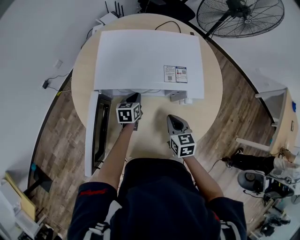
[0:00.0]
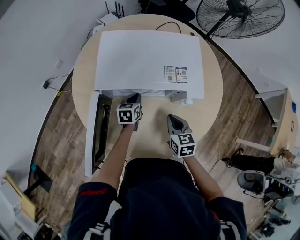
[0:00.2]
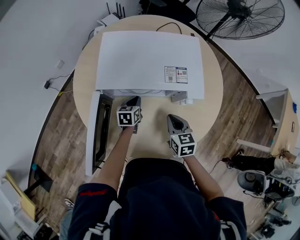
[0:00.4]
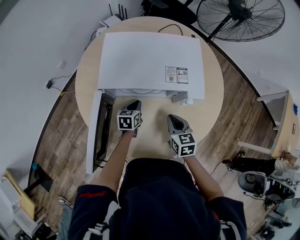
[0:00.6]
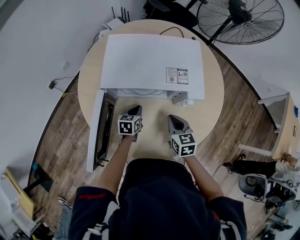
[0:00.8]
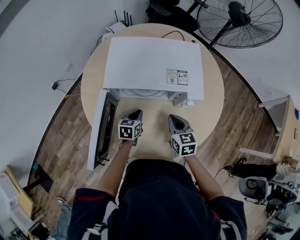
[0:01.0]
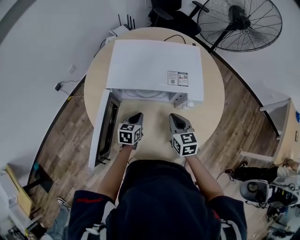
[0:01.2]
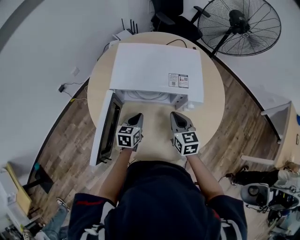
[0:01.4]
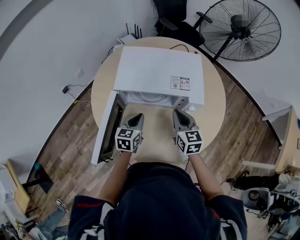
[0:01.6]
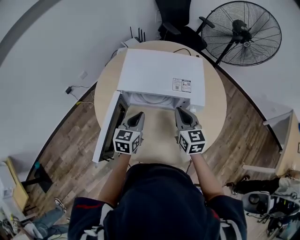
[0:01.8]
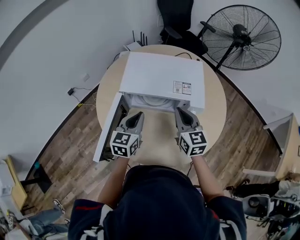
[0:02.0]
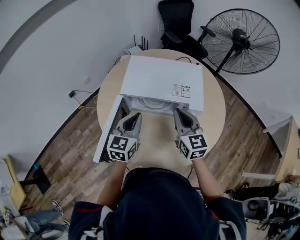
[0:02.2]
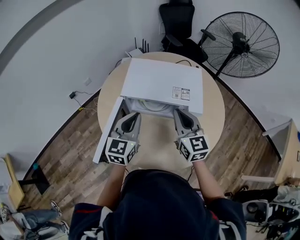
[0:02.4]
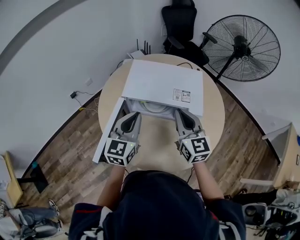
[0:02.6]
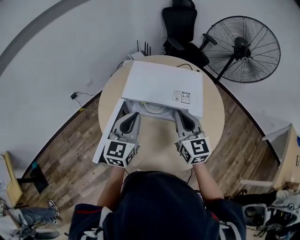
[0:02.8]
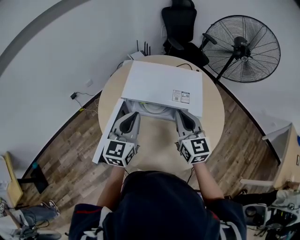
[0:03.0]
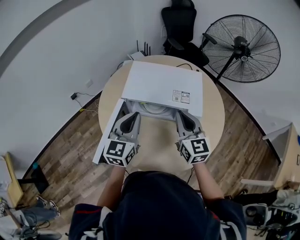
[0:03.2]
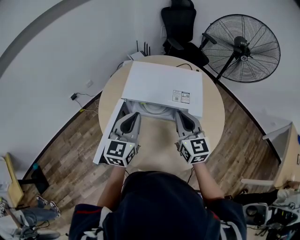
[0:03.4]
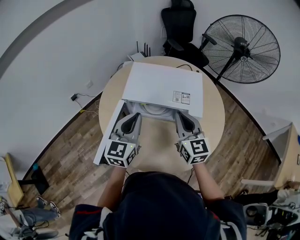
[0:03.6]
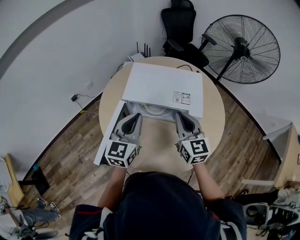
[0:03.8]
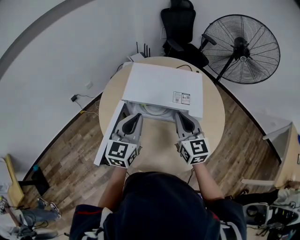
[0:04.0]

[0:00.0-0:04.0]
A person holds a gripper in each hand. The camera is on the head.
0:00.0 to 0:01.4: The right gripper shifts approximately 10 cm upward.
0:01.4 to 0:02.6: The right gripper heads upward, covering about 15 cm, and swivels about 20 degrees.

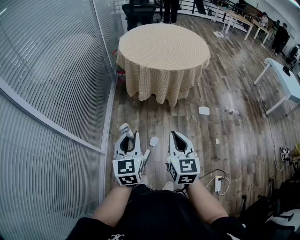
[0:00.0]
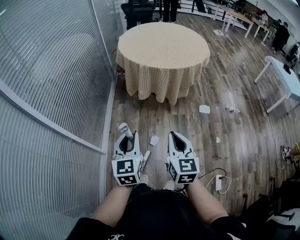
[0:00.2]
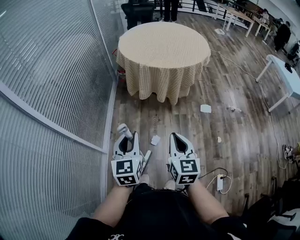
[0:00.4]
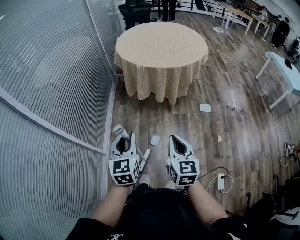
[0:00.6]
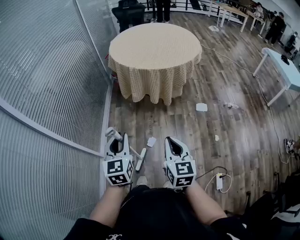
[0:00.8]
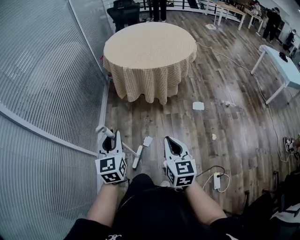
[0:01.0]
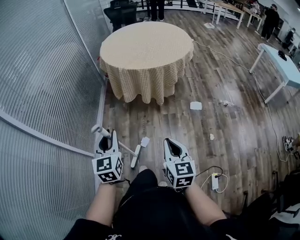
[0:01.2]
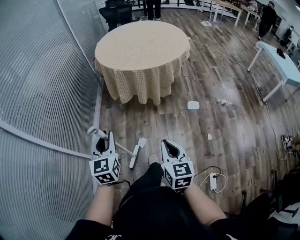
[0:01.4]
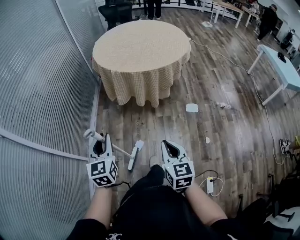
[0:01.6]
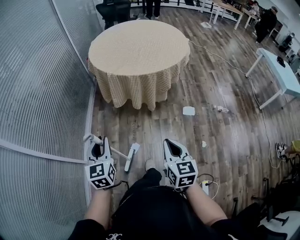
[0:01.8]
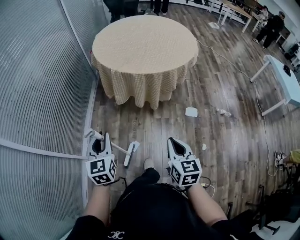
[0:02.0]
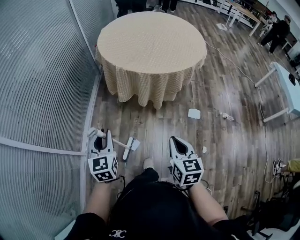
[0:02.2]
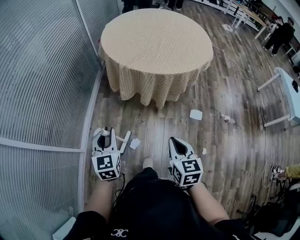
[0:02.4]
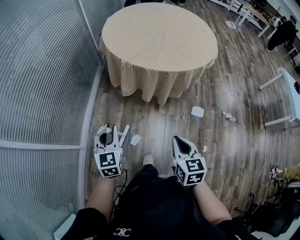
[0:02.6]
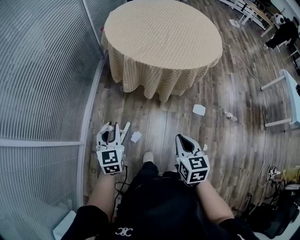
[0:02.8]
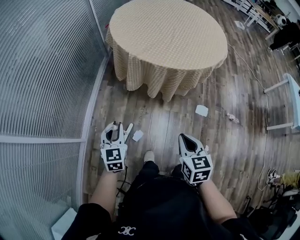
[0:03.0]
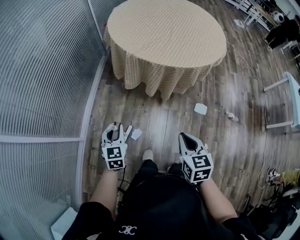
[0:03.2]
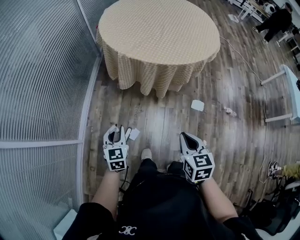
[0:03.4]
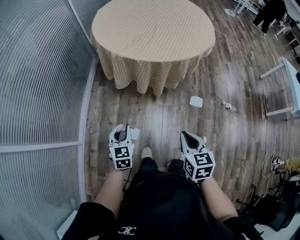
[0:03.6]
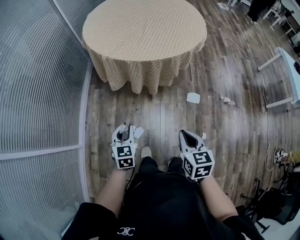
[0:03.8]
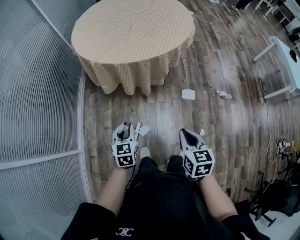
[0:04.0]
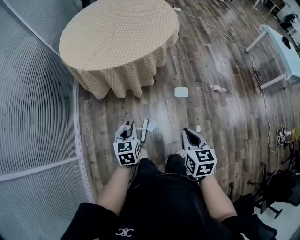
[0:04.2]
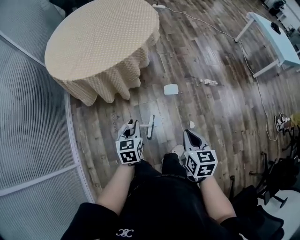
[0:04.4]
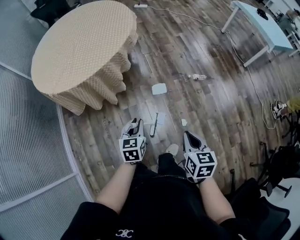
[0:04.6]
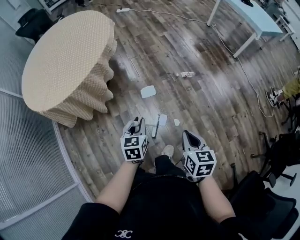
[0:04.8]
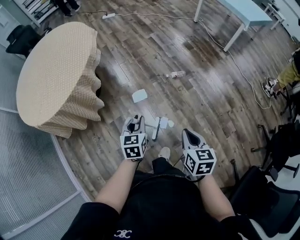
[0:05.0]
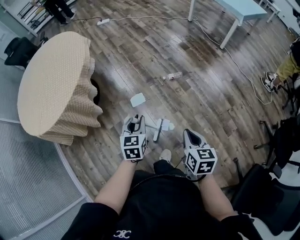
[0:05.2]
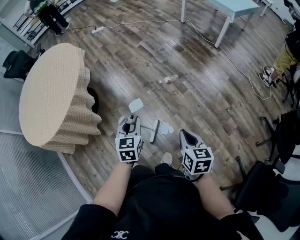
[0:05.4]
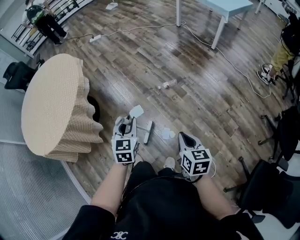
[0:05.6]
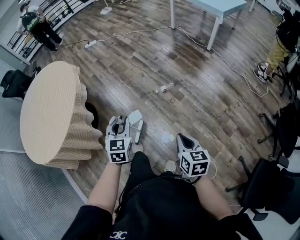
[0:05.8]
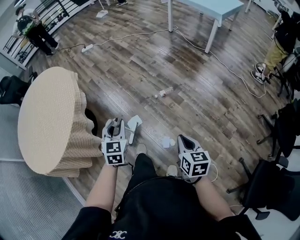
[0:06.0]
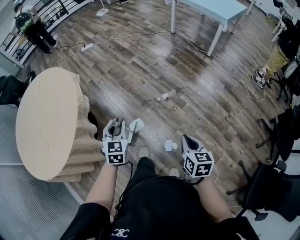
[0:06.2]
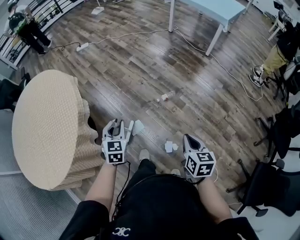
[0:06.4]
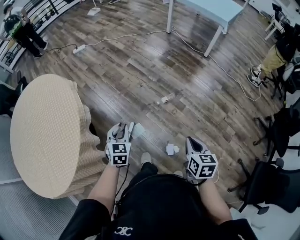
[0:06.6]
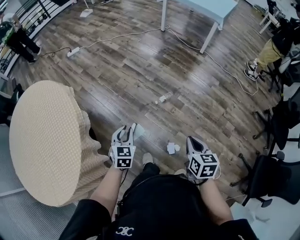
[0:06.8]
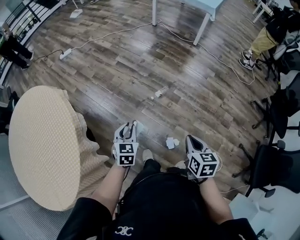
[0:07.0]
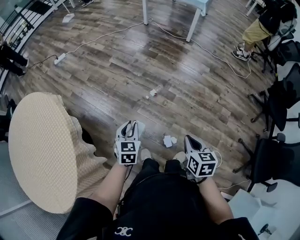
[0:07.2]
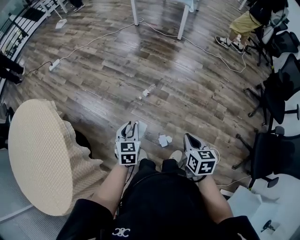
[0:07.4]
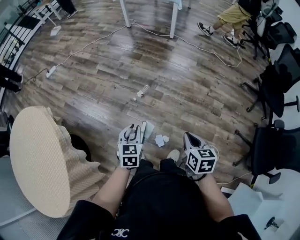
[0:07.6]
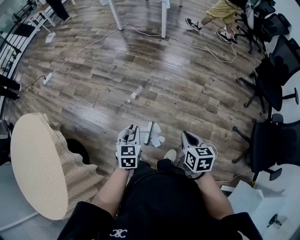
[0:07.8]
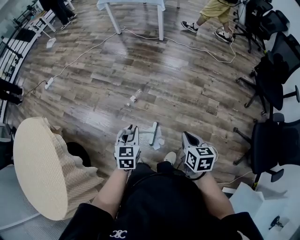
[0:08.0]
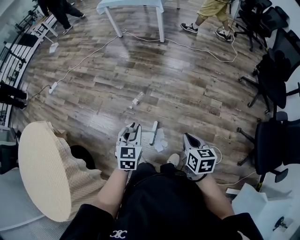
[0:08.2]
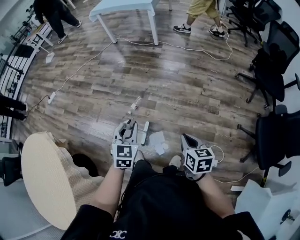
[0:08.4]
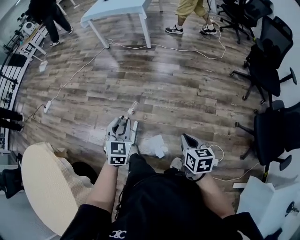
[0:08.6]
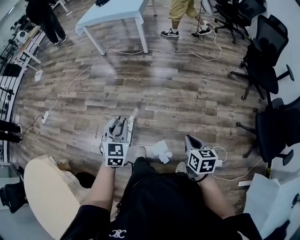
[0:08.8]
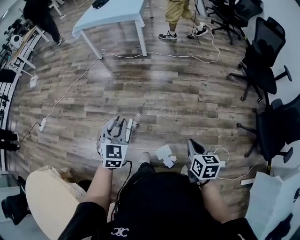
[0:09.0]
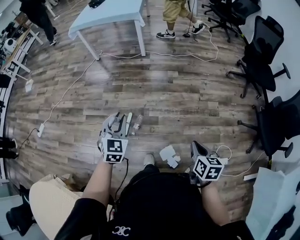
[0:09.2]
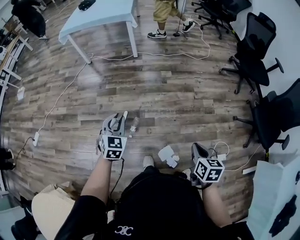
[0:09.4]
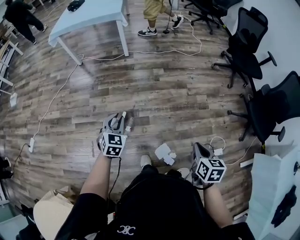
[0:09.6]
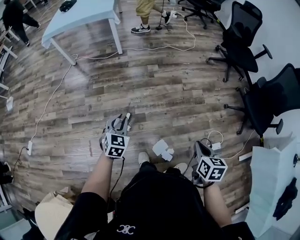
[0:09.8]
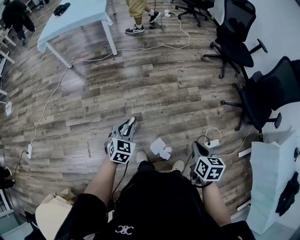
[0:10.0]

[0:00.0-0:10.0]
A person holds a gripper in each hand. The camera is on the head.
0:00.0 to 0:01.4: The right gripper shifts approximately 15 cm to the right. Meanwhile the left gripper moves to the right, roughly 10 cm.
0:01.4 to 0:02.8: The left gripper goes roughly 25 cm forward and downward; the right gripper heads forward, covering roughly 20 cm.
0:02.8 to 0:04.2: The two grippers go roughly 25 cm to the right. The left gripper changes its angle by roughly 20 degrees.
0:04.2 to 0:05.8: The two grippers travel together, some 50 cm. The left gripper rotates some 50 degrees, while the right gripper rotates about 40 degrees.
0:05.8 to 0:07.2: The left gripper travels forward and downward by about 20 cm, and changes its angle by some 20 degrees. The right gripper moves forward and to the left, roughly 15 cm, and changes its angle by roughly 20 degrees.
0:07.2 to 0:08.6: The grippers both shift to the right by some 25 cm. The left gripper changes its angle by about 30 degrees.
0:08.6 to 0:10.0: The right gripper rotates approximately 30 degrees; the left gripper turns by approximately 30 degrees.

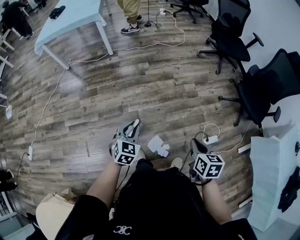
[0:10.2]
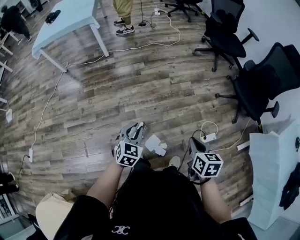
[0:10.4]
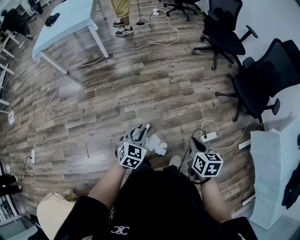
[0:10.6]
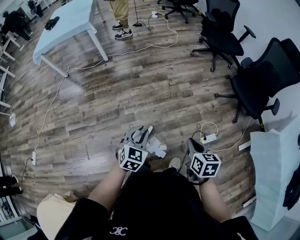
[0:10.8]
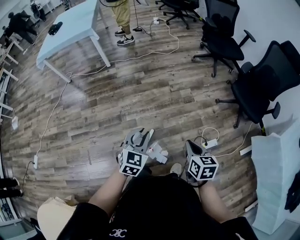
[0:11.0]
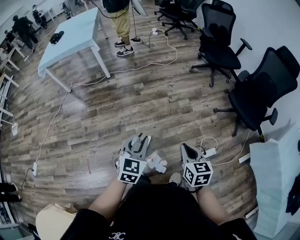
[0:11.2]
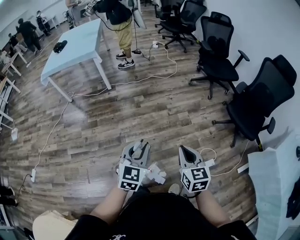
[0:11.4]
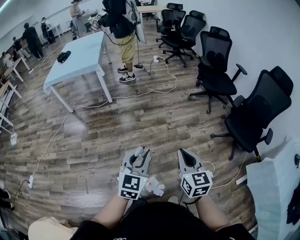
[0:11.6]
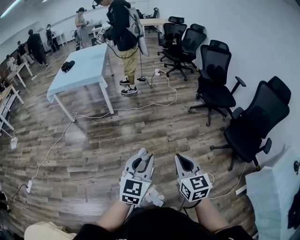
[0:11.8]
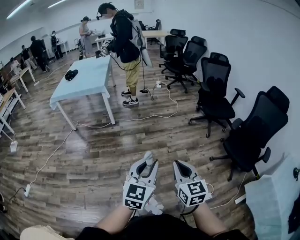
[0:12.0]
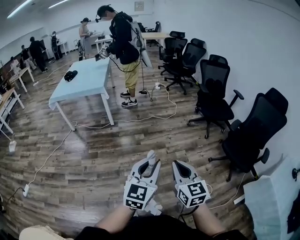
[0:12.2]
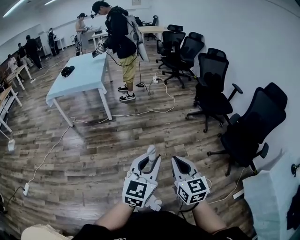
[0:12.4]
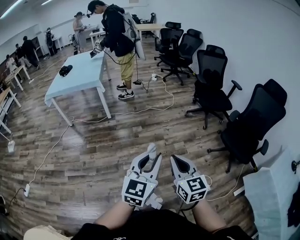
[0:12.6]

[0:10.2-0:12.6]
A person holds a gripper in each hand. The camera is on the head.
0:10.2 to 0:11.4: The right gripper travels upward by approximately 10 cm, and rotates some 30 degrees; the left gripper shifts some 20 cm upward and to the right.
0:11.4 to 0:12.6: Both grippers move upward, roughly 15 cm.

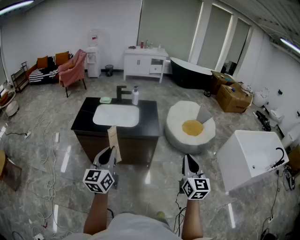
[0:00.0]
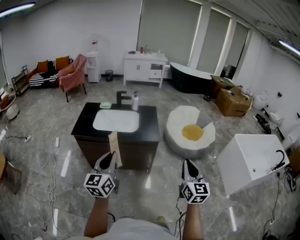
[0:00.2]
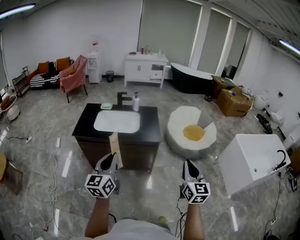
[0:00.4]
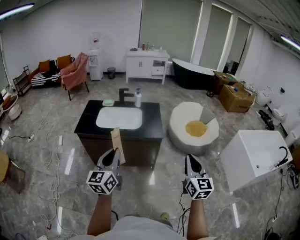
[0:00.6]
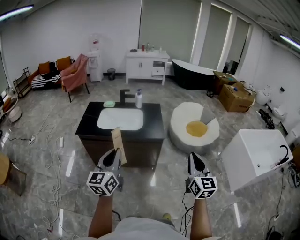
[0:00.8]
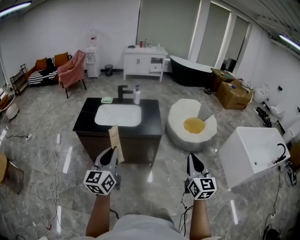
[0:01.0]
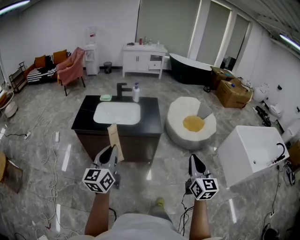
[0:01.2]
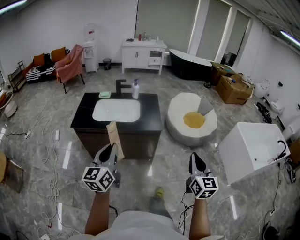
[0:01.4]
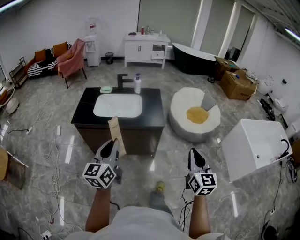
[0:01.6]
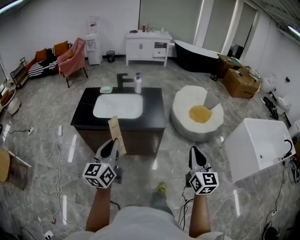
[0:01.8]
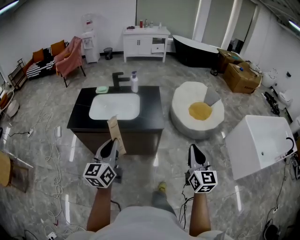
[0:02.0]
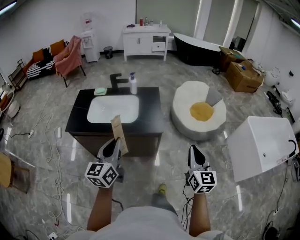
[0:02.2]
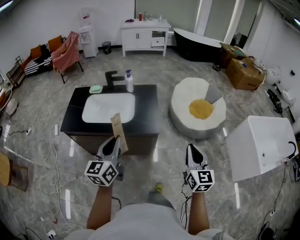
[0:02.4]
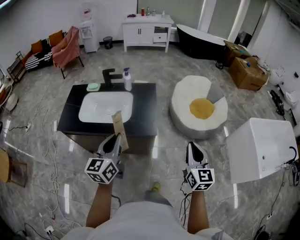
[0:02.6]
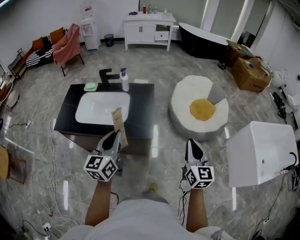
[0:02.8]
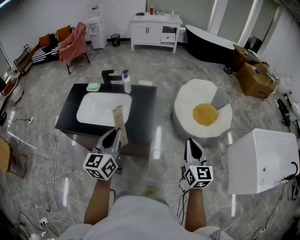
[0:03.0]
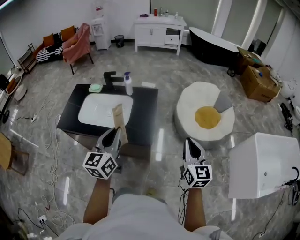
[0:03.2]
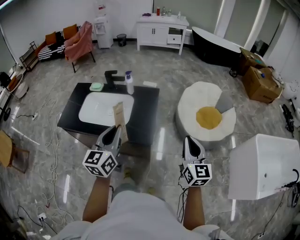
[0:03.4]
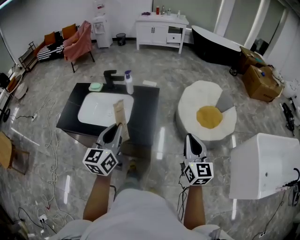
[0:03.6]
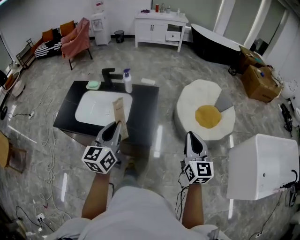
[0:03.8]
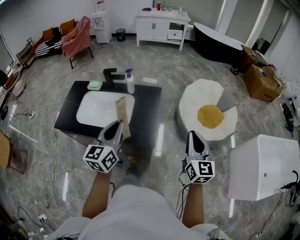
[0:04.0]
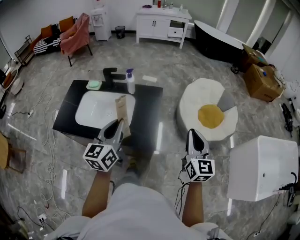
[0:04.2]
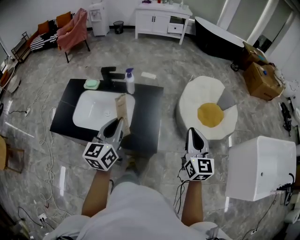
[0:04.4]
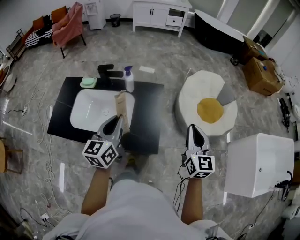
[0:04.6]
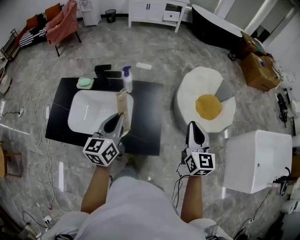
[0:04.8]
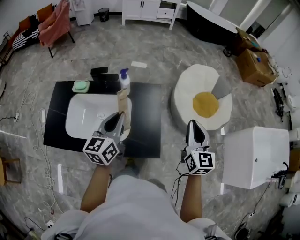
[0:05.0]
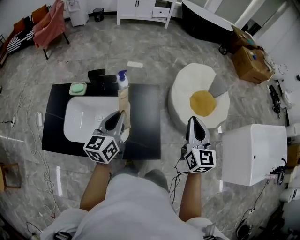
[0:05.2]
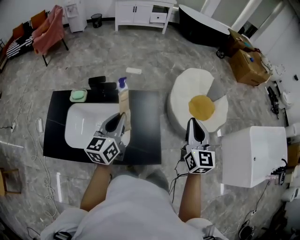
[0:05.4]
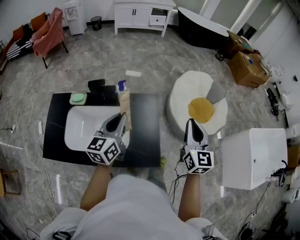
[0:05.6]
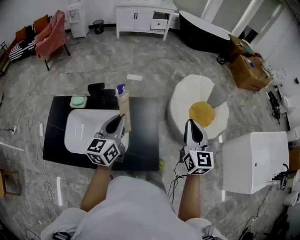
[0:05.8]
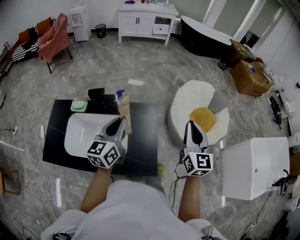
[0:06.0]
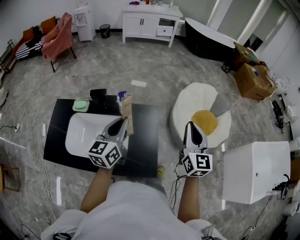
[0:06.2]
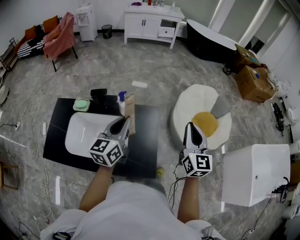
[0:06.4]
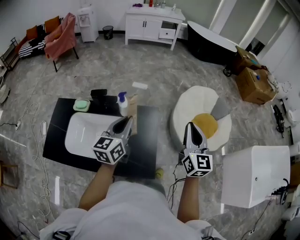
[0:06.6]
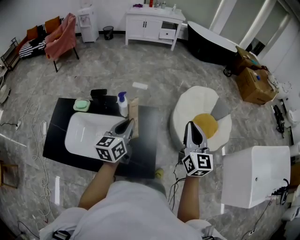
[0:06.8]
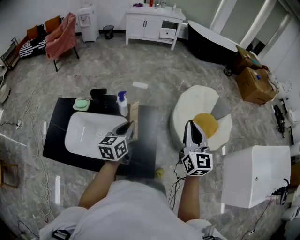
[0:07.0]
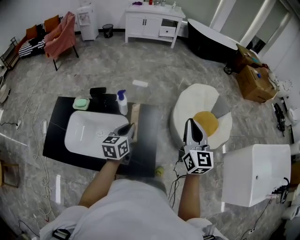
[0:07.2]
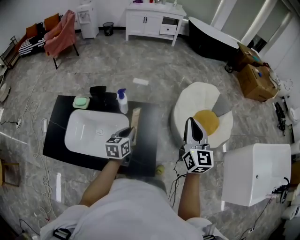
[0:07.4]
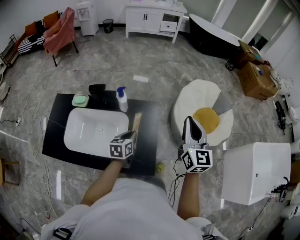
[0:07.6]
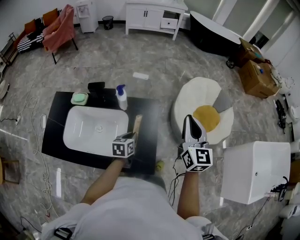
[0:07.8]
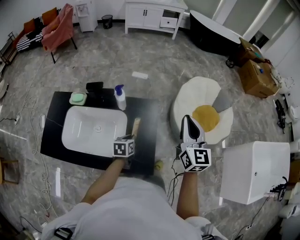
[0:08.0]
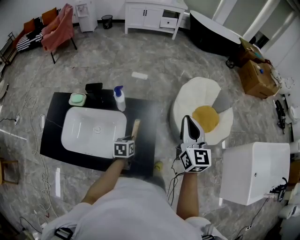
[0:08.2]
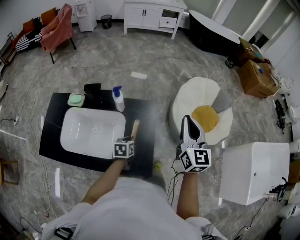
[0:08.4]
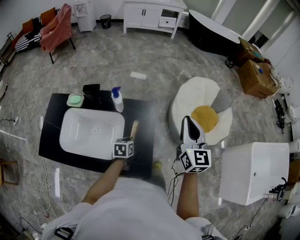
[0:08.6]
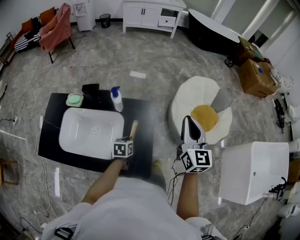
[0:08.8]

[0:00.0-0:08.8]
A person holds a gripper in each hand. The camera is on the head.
0:00.0 to 0:01.4: The grippers make only small movements.
0:01.4 to 0:03.0: The right gripper goes about 40 cm forward. Meanwhile the left gripper is displaced forward and to the right by roughly 40 cm.
0:03.0 to 0:04.4: Both grippers travel together forward, some 15 cm.
0:04.4 to 0:05.8: The left gripper is displaced forward by about 20 cm. The right gripper shifts about 15 cm forward and to the left.
0:05.8 to 0:07.4: The left gripper is displaced downward and to the right by about 15 cm, and changes its angle by roughly 20 degrees. The right gripper ends up some 5 cm from where it was.
0:07.4 to 0:08.8: The left gripper moves downward, about 15 cm, and changes its angle by roughly 20 degrees.
